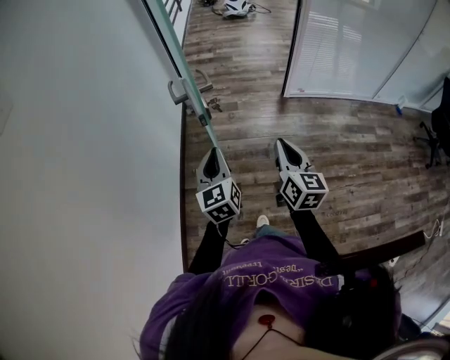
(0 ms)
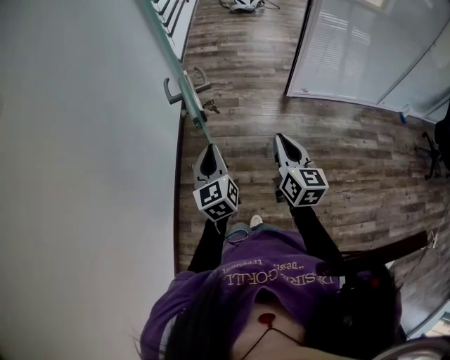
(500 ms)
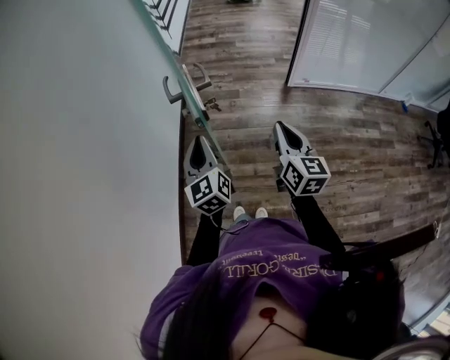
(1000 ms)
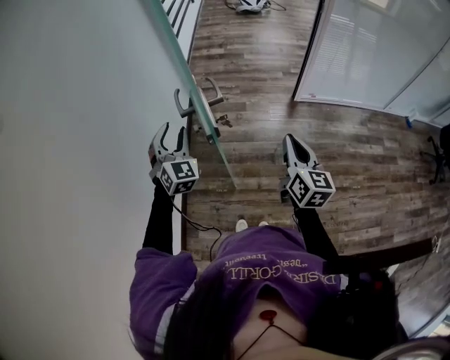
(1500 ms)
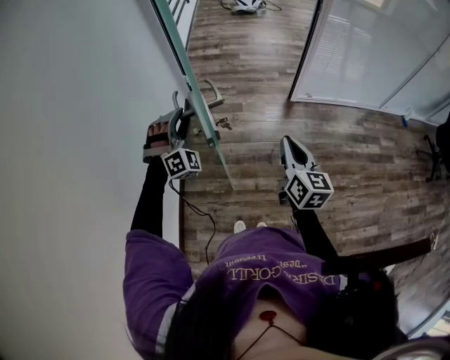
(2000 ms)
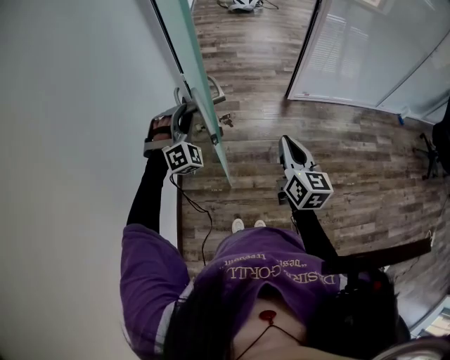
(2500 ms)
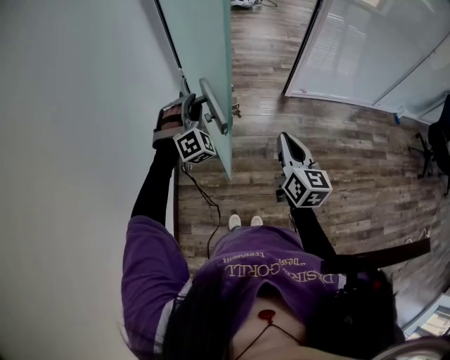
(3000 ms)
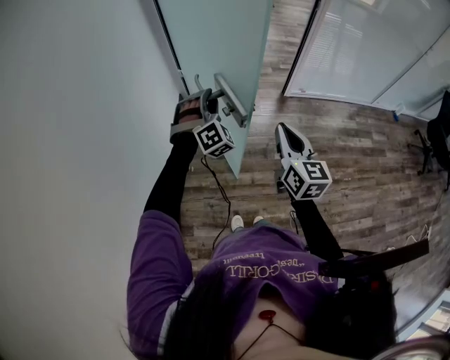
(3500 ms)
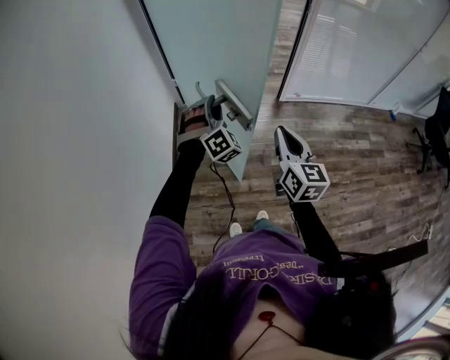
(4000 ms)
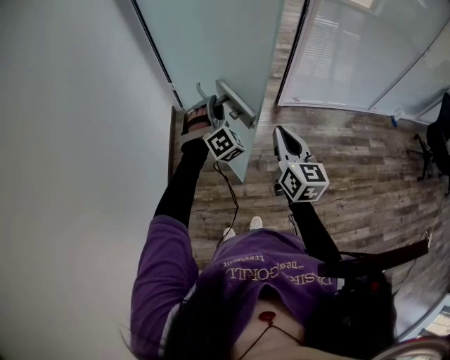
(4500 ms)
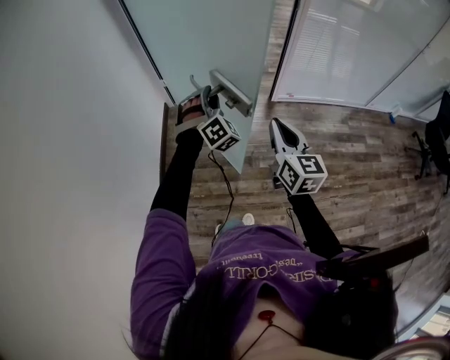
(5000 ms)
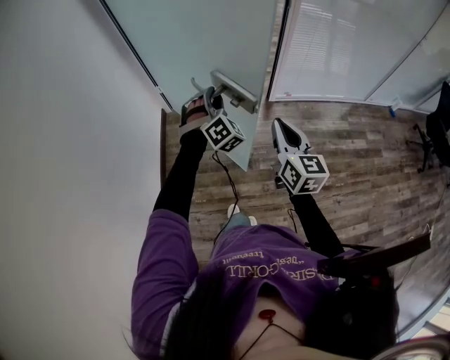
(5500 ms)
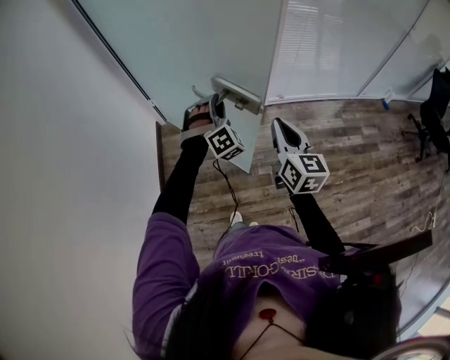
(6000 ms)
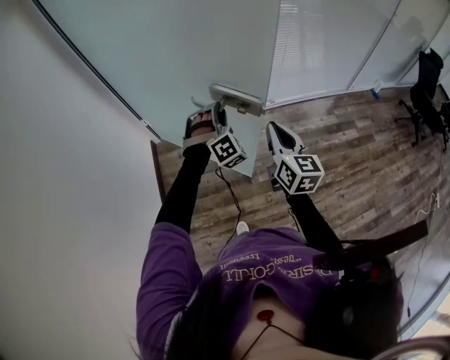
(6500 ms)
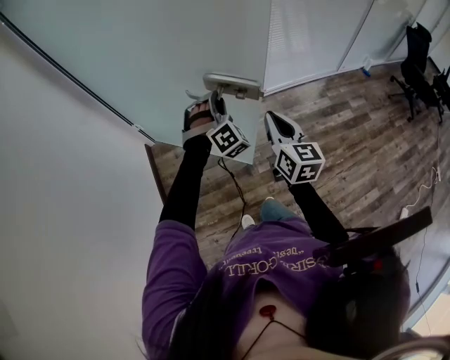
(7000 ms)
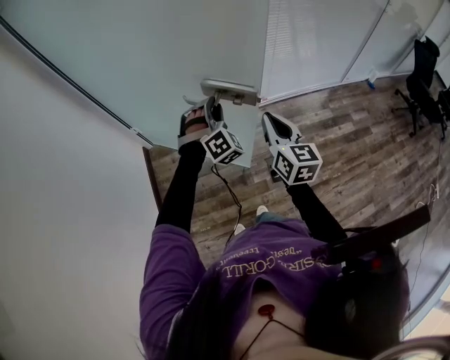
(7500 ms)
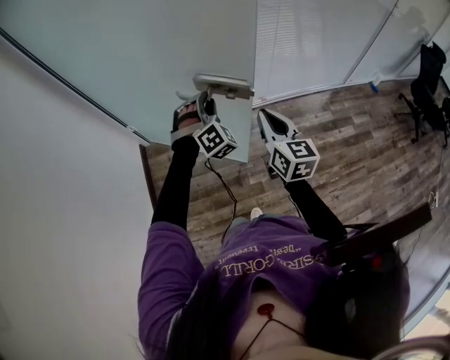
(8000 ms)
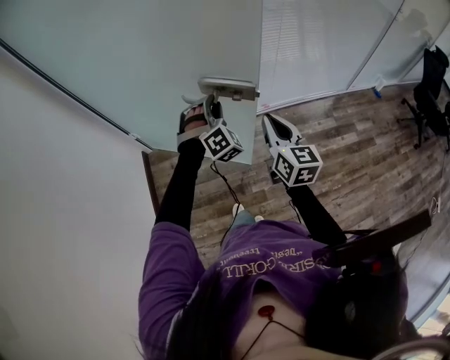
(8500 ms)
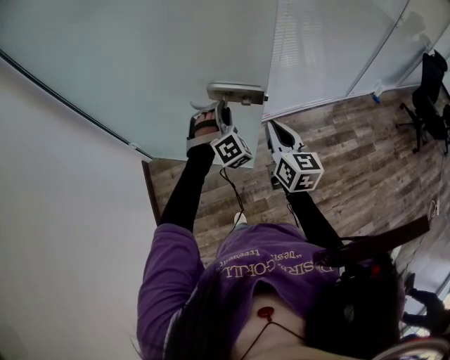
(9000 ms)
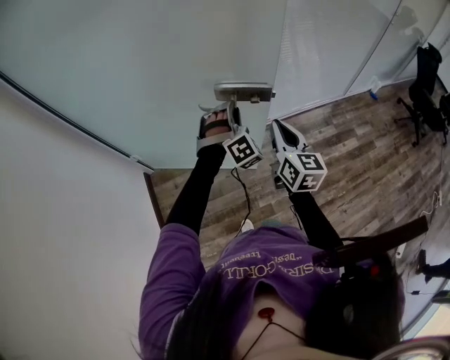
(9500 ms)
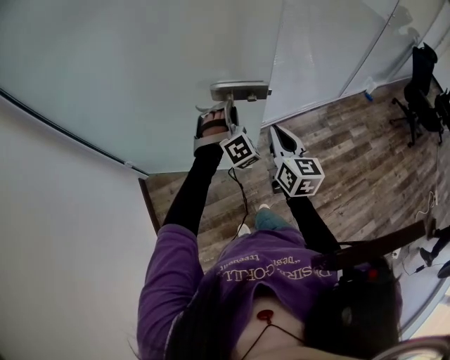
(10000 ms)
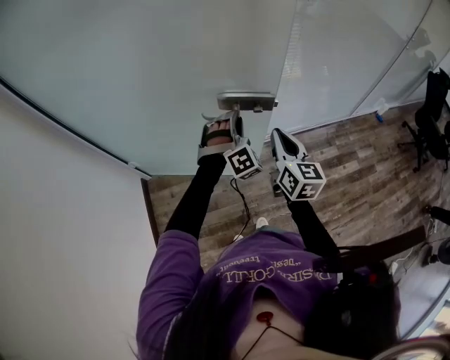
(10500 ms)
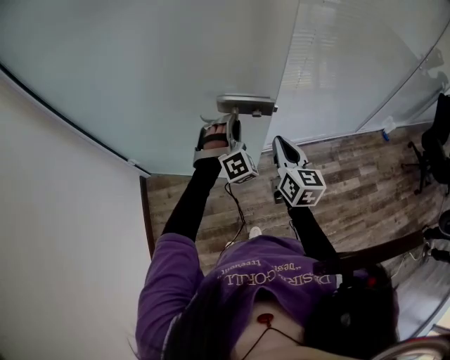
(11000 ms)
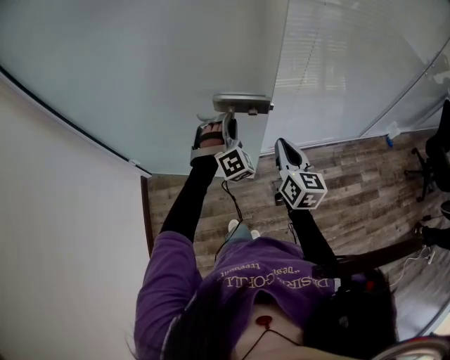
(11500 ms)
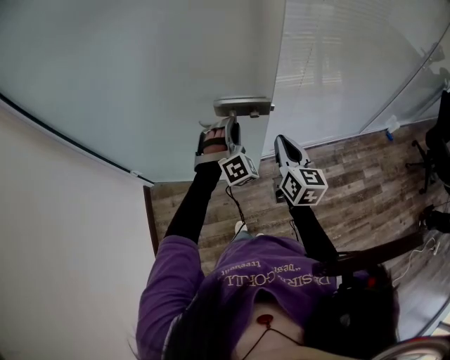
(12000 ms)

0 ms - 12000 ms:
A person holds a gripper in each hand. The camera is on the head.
0 ms - 2000 ms: The left gripper goes approximately 20 cm forward, rolls clockwise, seen from behind, by approximately 90 degrees, and opens. The right gripper moves forward, some 10 cm.
2000 ms - 4000 ms: The left gripper goes roughly 10 cm to the right.
4000 ms - 6000 ms: The two grippers go approximately 20 cm to the right and forward.
6000 ms - 8000 ms: The two grippers go approximately 15 cm forward and to the right.
8000 ms - 10000 ms: The right gripper is displaced forward by roughly 15 cm, while the left gripper is displaced forward and to the right by approximately 15 cm.
10000 ms - 12000 ms: Both grippers travel together forward, approximately 15 cm.

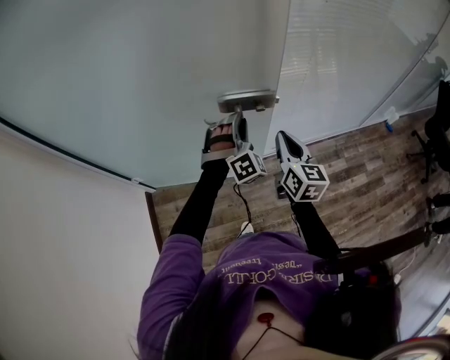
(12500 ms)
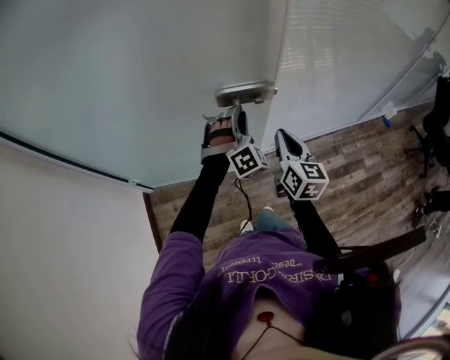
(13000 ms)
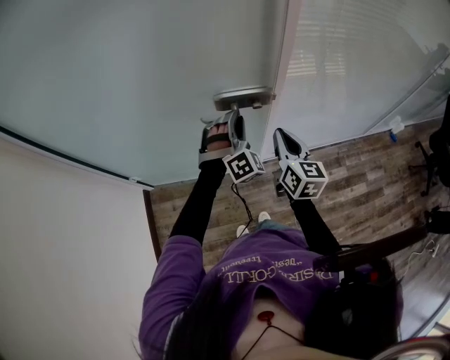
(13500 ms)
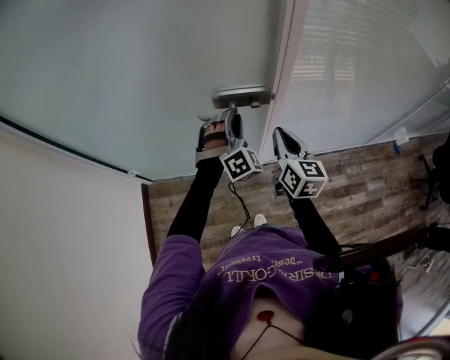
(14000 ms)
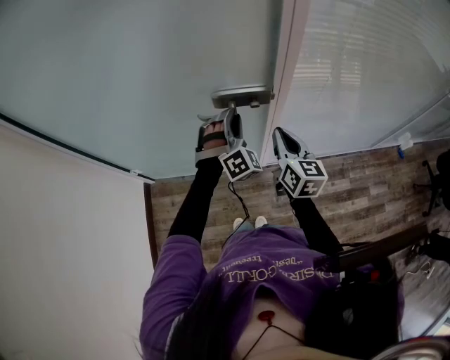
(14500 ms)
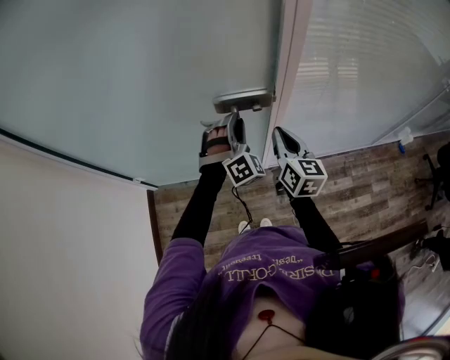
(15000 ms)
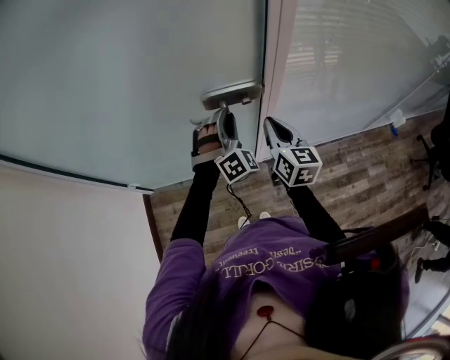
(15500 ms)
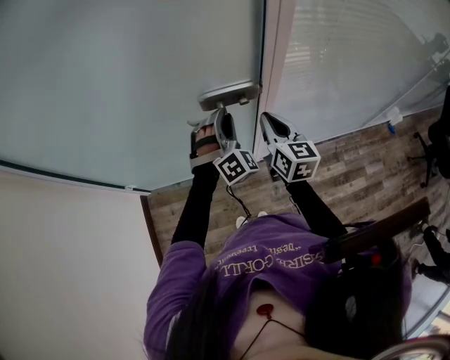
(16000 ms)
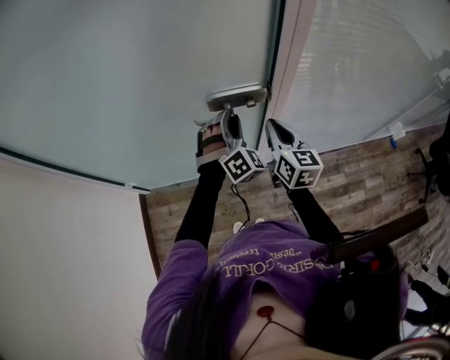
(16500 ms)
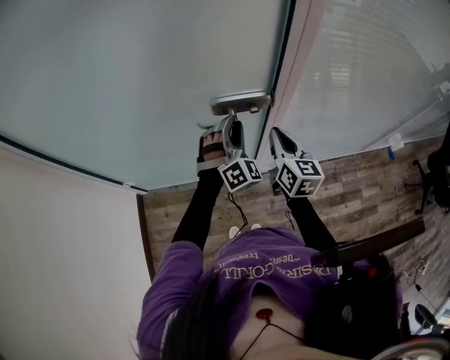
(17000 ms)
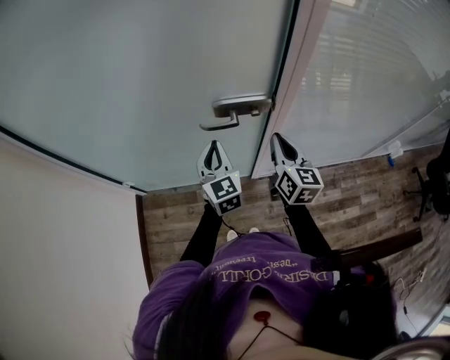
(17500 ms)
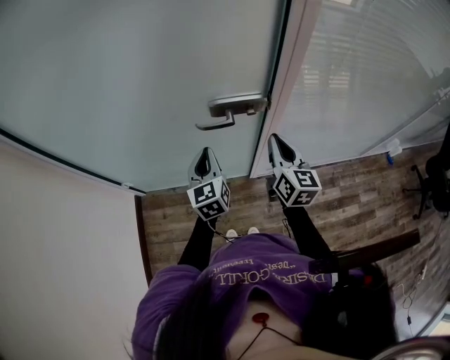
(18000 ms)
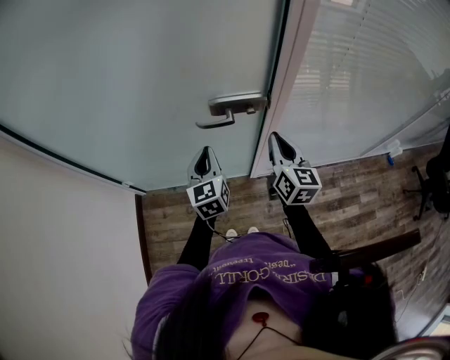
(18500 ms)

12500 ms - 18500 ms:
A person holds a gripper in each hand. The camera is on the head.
12500 ms - 14500 ms: The grippers both shift forward by some 10 cm.
14500 ms - 16500 ms: The grippers move only a little.
16500 ms - 18500 ms: The left gripper goes about 10 cm to the left, rotates around the line of its fingers by roughly 70 degrees, counterclockwise from behind, and closes.

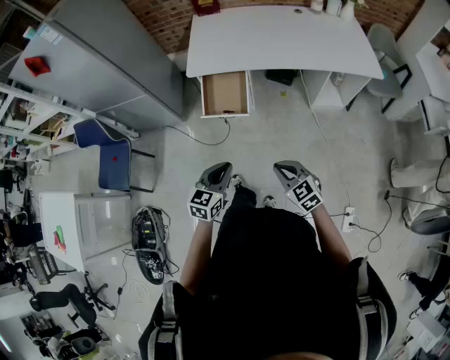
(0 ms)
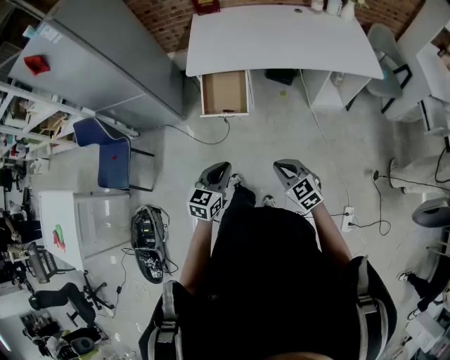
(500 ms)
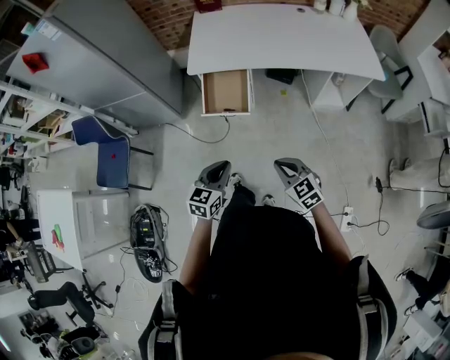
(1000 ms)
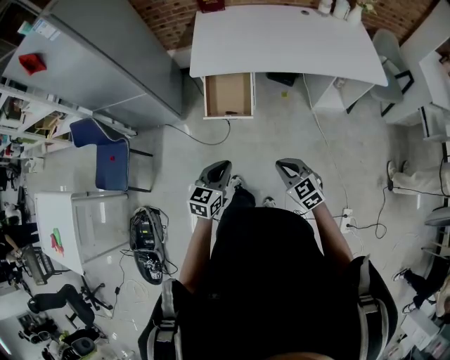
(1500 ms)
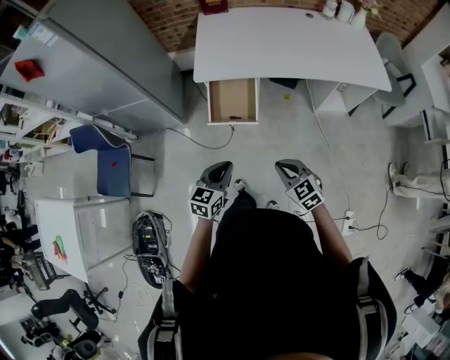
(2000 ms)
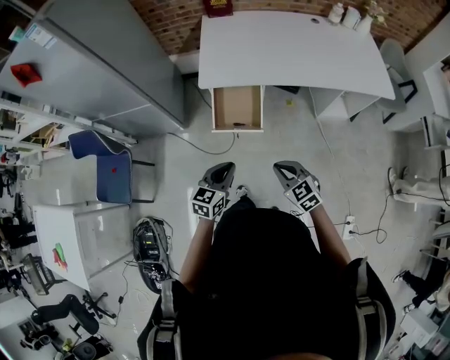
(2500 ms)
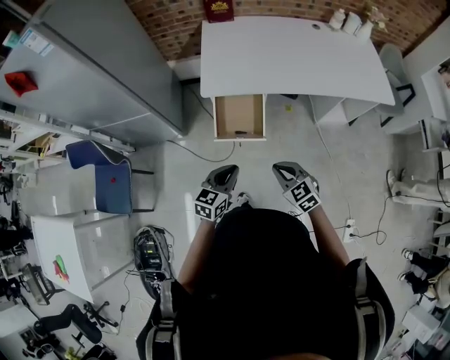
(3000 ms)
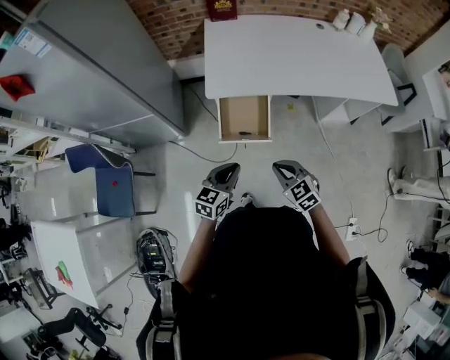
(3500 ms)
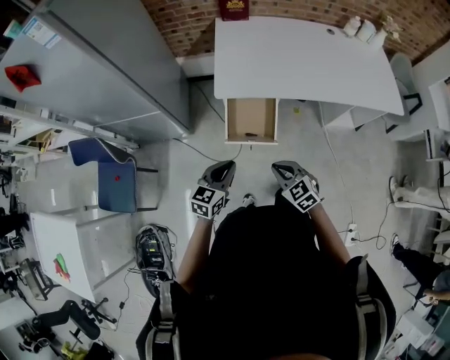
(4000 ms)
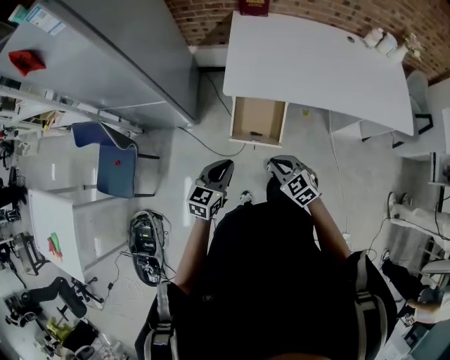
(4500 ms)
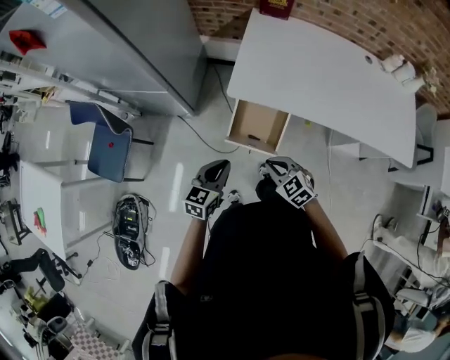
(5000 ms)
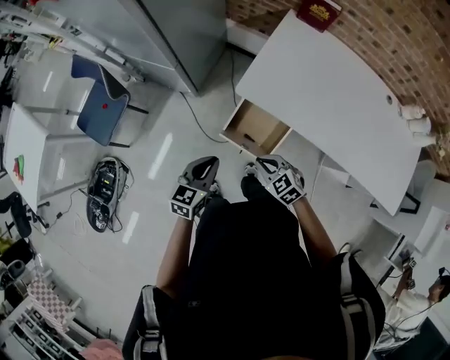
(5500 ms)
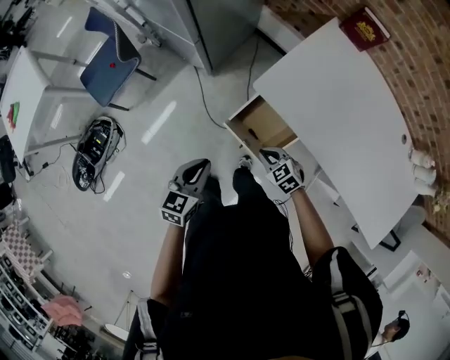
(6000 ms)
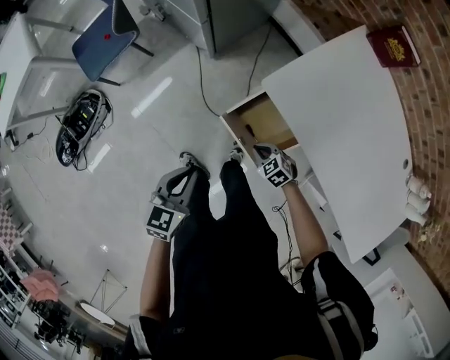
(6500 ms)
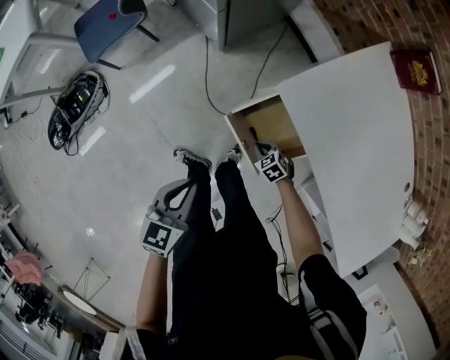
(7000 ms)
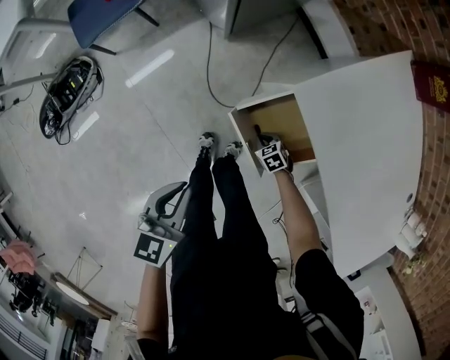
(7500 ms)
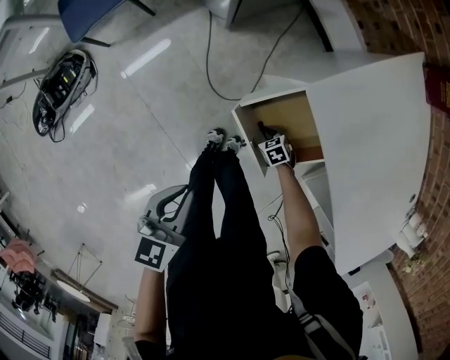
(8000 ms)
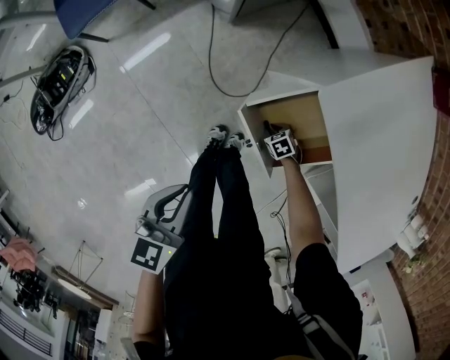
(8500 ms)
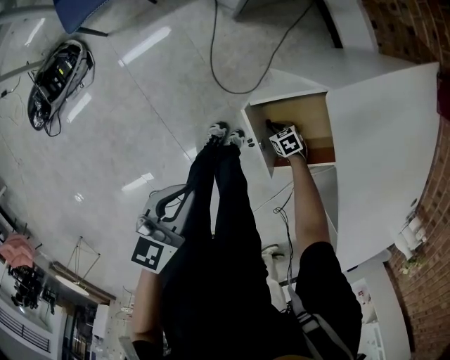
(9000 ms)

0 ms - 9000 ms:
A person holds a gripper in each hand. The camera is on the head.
0 ms - 2000 ms: The two grippers go approximately 10 cm forward and to the left.
2000 ms - 4500 ms: The two grippers go about 20 cm forward and to the left.
4500 ms - 7000 ms: The right gripper shifts roughly 35 cm downward, and changes its angle by approximately 50 degrees, while the left gripper is displaced downward by roughly 10 cm, and swivels about 50 degrees.
7000 ms - 9000 ms: The left gripper travels downward by about 10 cm. The right gripper goes some 15 cm downward.
